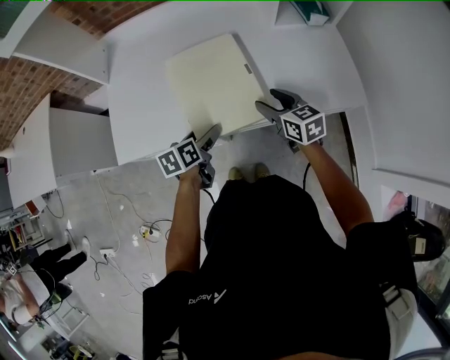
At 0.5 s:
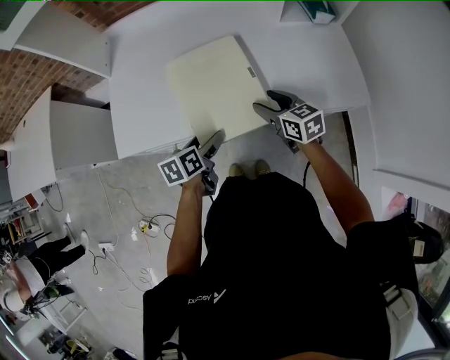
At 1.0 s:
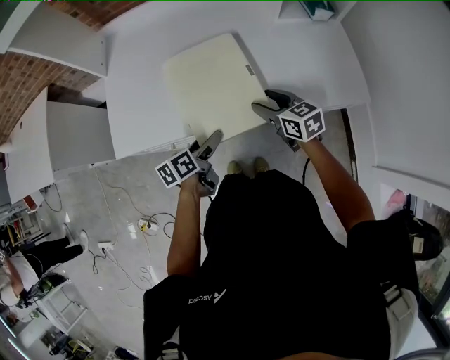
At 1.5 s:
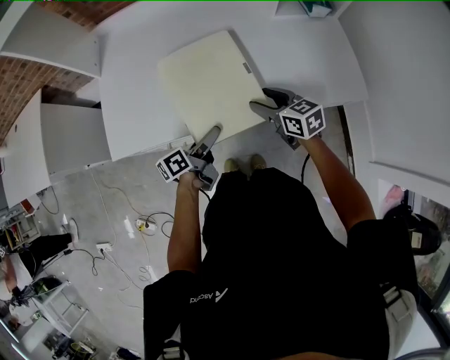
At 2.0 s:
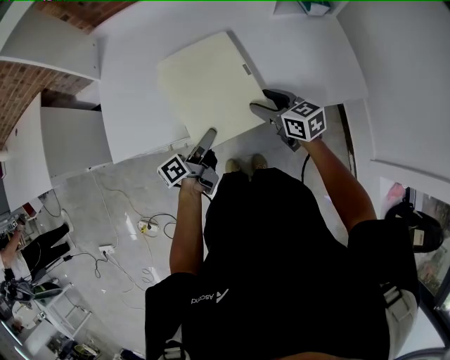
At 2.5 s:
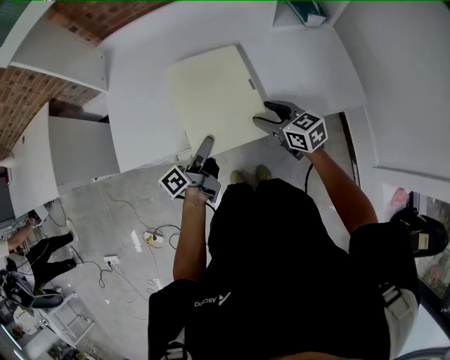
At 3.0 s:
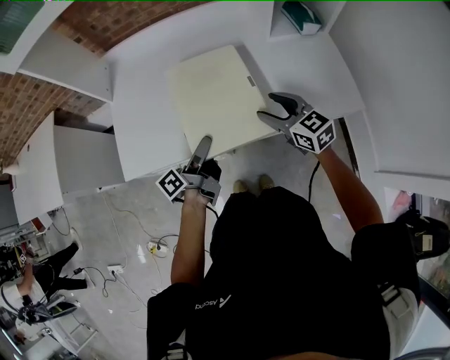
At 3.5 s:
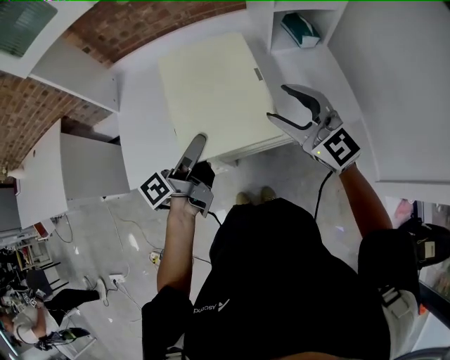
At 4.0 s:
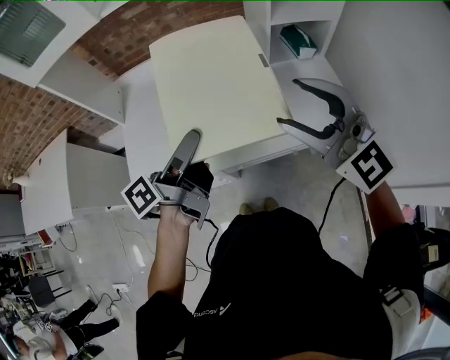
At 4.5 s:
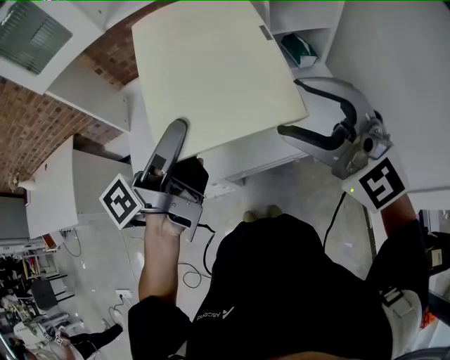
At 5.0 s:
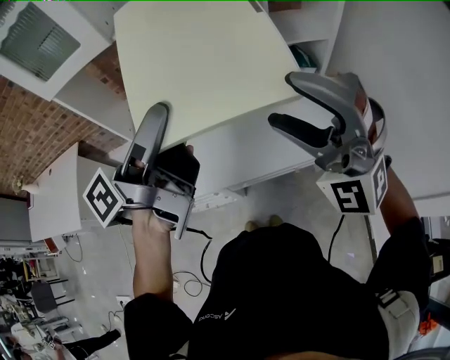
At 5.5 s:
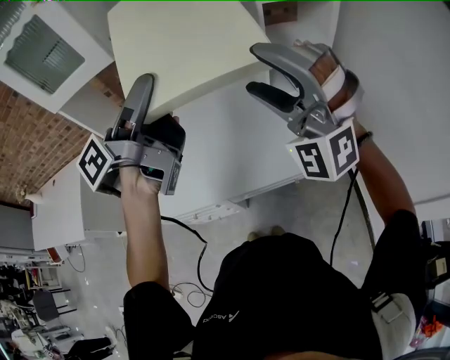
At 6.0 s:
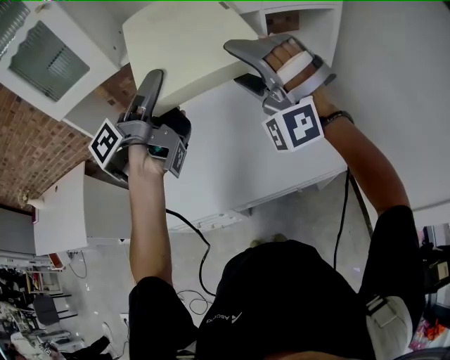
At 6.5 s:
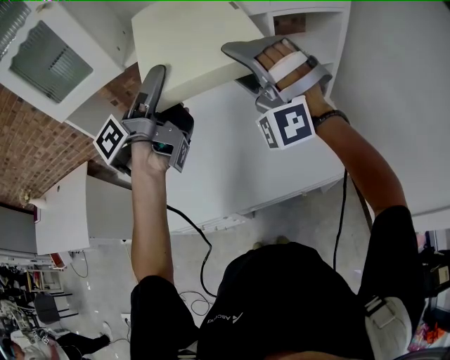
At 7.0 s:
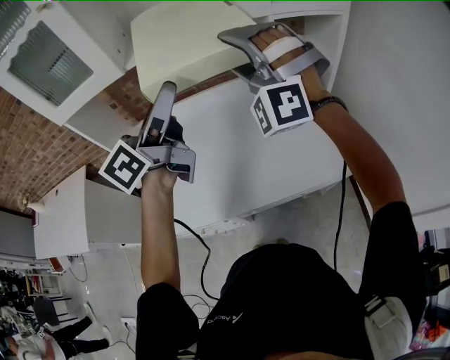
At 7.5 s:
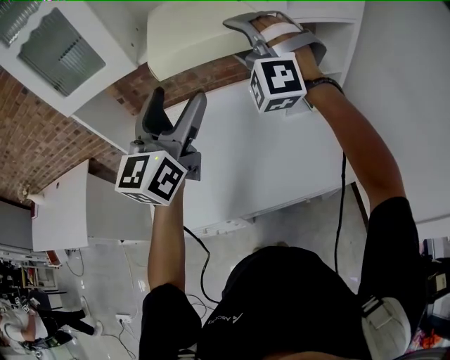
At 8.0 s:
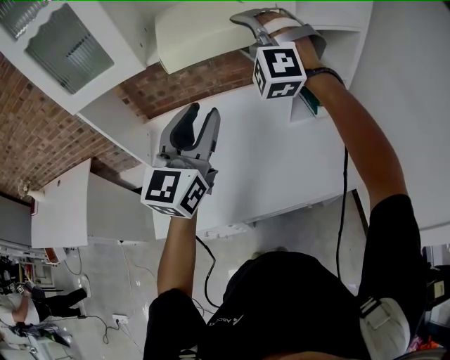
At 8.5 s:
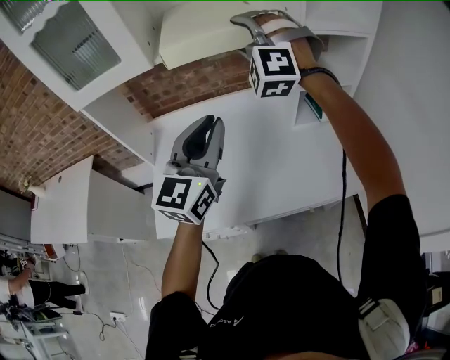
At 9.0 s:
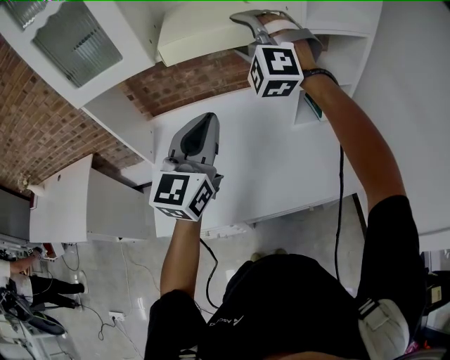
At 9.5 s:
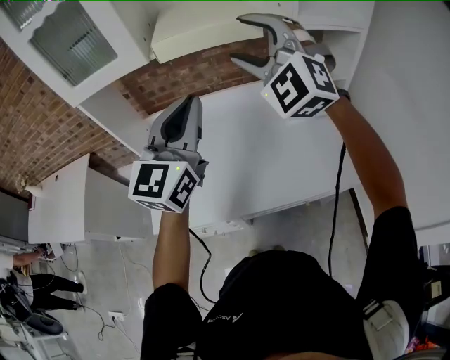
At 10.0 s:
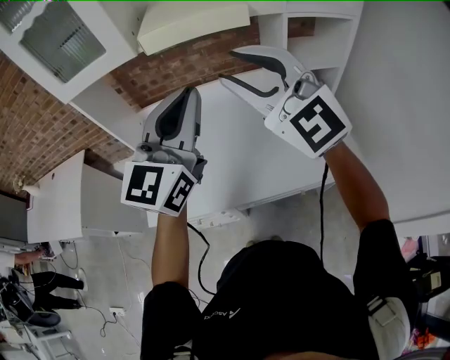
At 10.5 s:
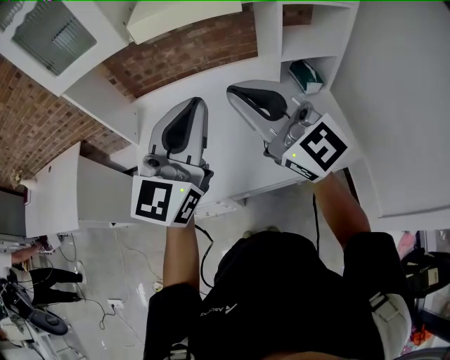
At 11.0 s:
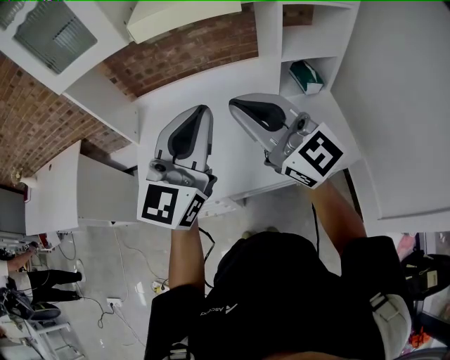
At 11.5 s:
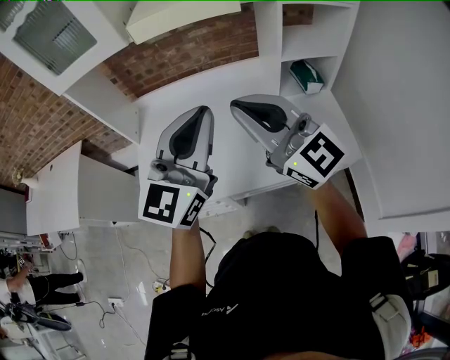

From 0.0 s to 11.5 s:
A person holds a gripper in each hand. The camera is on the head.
From 0.0 s to 2.0 s: The left gripper tips its fingers upward by approximately 30 degrees.
From 2.0 s to 4.0 s: Both grippers move upward, about 35 cm. The right gripper rotates around the line of its fingers by some 50 degrees, counterclockwise from behind.
From 4.0 s to 6.0 s: The right gripper moves forward and upward, about 20 cm, and twists about 70 degrees counterclockwise, seen from behind, while the left gripper heads upward and forward, covering approximately 25 cm.
From 6.0 s to 7.5 s: The right gripper moves forward, about 10 cm. The left gripper twists some 80 degrees clockwise, seen from behind.
From 7.5 s to 9.5 s: The right gripper shifts about 5 cm backward, and rotates some 30 degrees. Meanwhile the left gripper closes up.
From 9.5 s to 11.5 s: The left gripper travels backward by some 10 cm. The right gripper goes roughly 20 cm backward and downward, twists about 60 degrees clockwise, seen from behind, and closes its fingers.

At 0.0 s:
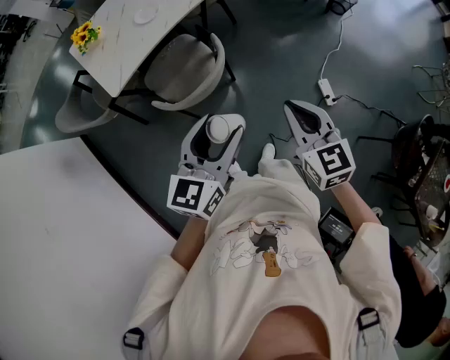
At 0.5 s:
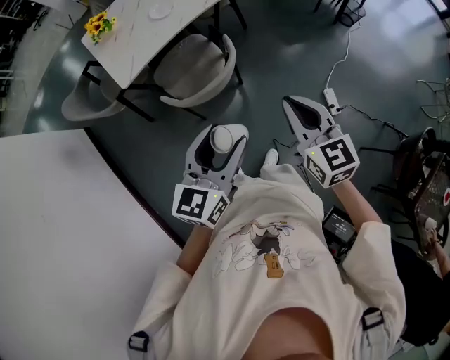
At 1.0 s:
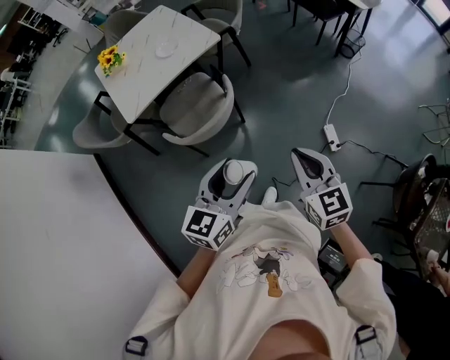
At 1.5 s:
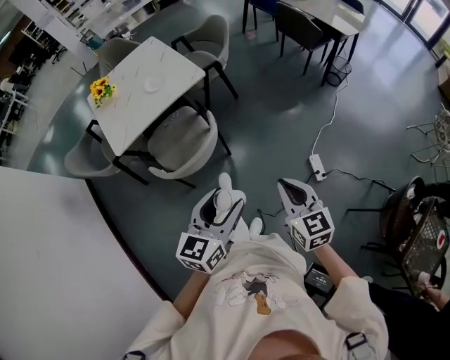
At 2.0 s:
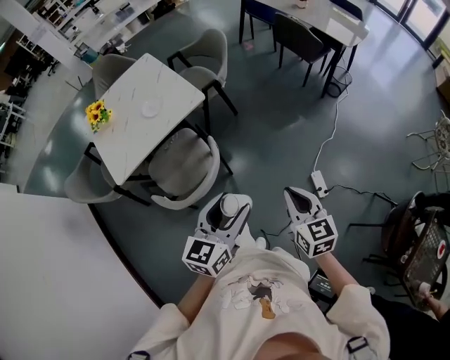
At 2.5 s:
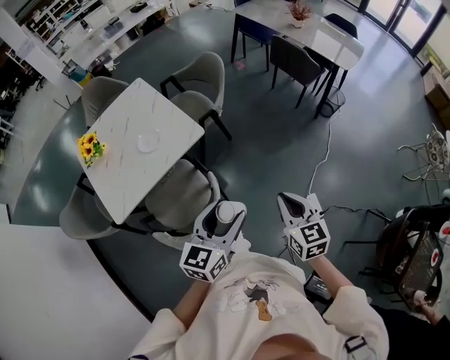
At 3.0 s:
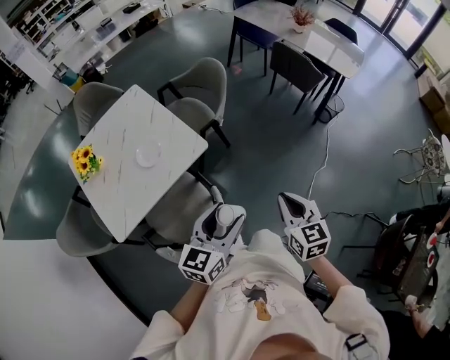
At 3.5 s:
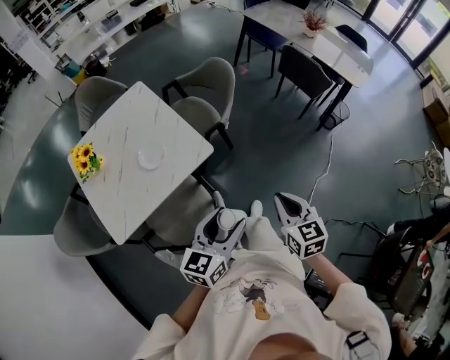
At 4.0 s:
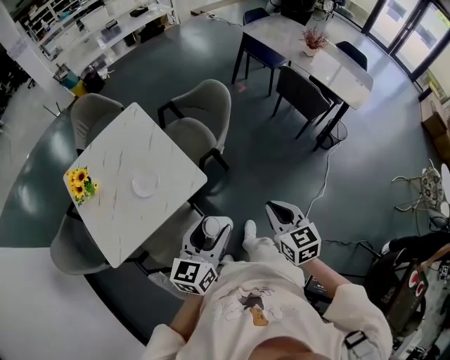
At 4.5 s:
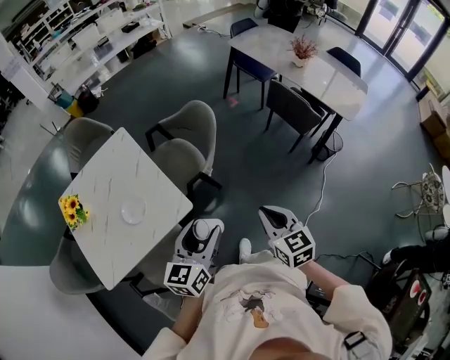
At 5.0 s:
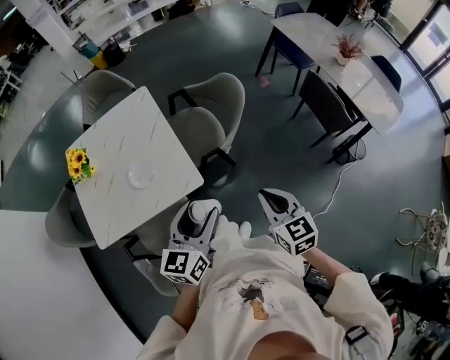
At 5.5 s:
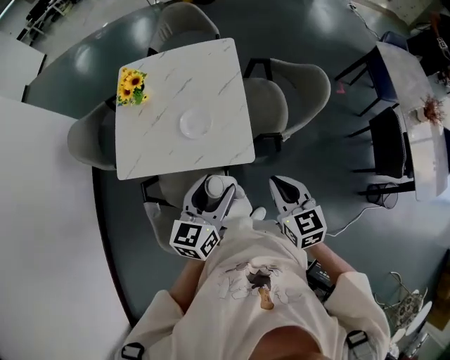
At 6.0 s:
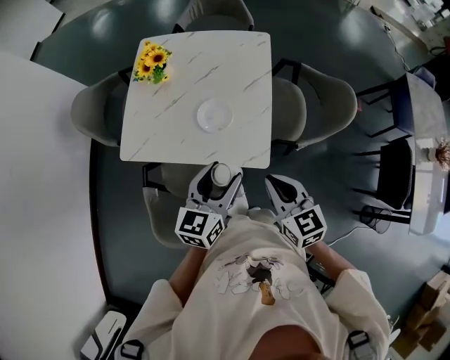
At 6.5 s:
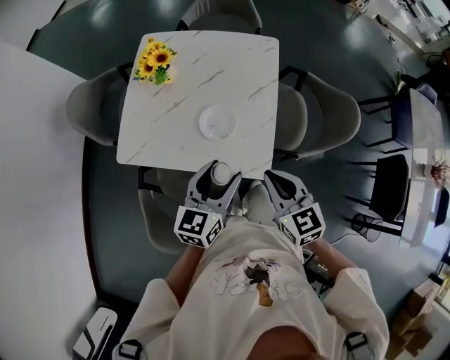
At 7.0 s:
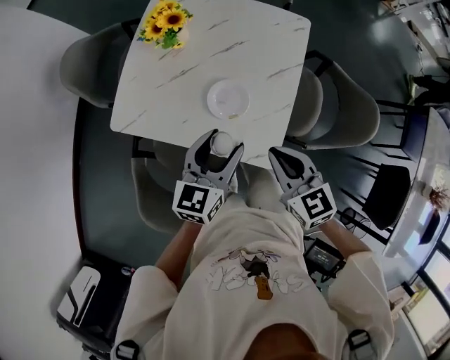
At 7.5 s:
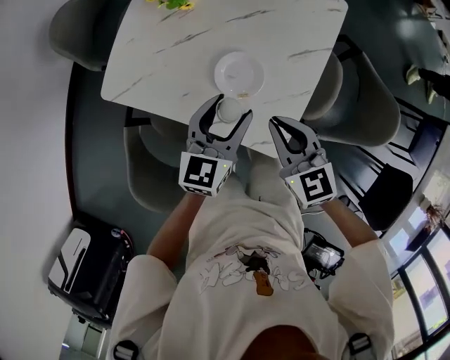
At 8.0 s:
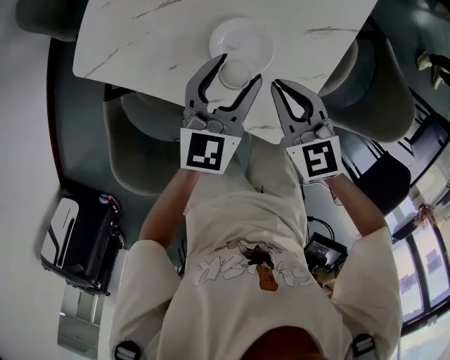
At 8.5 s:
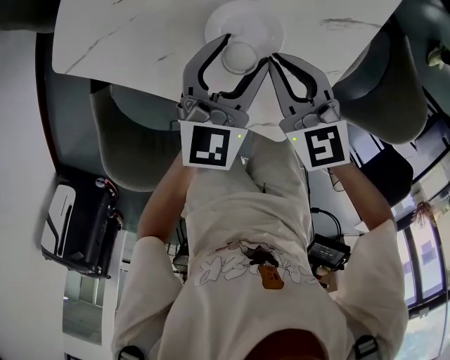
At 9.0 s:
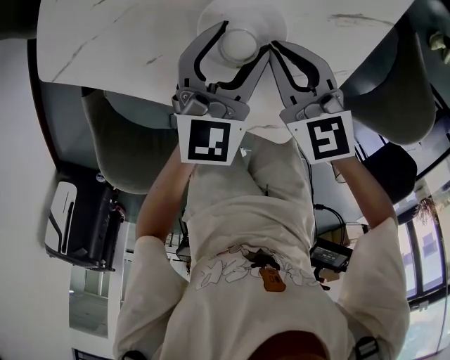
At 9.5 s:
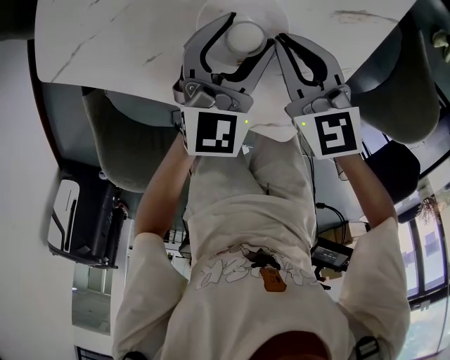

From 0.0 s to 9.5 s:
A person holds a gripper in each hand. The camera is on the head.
From 0.0 s to 2.0 s: The right gripper heads forward, to the right and downward, covering about 15 cm. Meanwhile the left gripper shifts approximately 15 cm forward and to the right.
From 2.0 s to 4.0 s: The left gripper moves forward and to the left, some 35 cm; the right gripper goes roughly 35 cm forward.
From 4.0 s to 5.5 s: The left gripper moves approximately 10 cm, and swivels about 40 degrees. Meanwhile the right gripper ends up about 20 cm from where it was, and swivels about 40 degrees.
From 5.5 s to 7.5 s: The right gripper moves roughly 30 cm, and turns by roughly 40 degrees. Meanwhile the left gripper moves some 25 cm, and turns by some 20 degrees.
From 7.5 s to 9.5 s: The two grippers go approximately 15 cm downward and forward.

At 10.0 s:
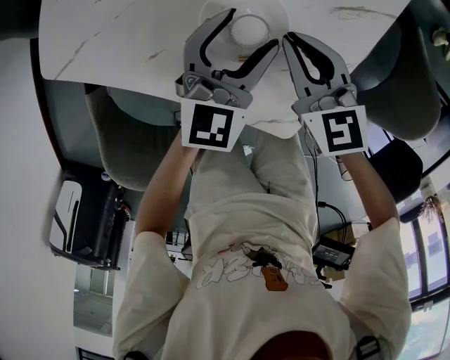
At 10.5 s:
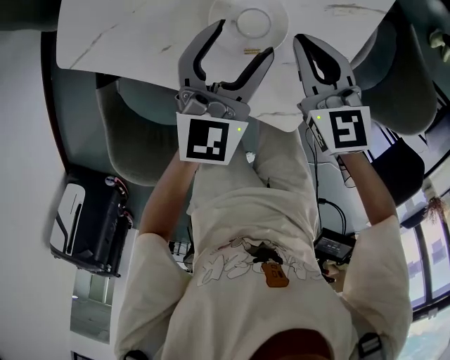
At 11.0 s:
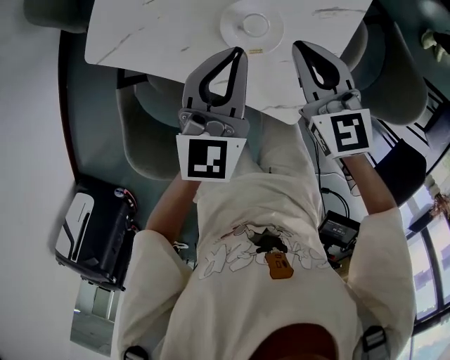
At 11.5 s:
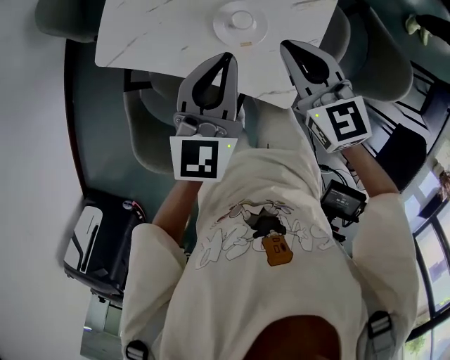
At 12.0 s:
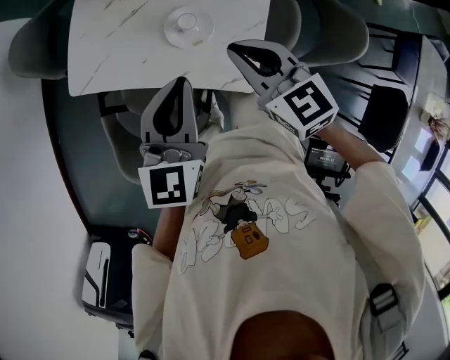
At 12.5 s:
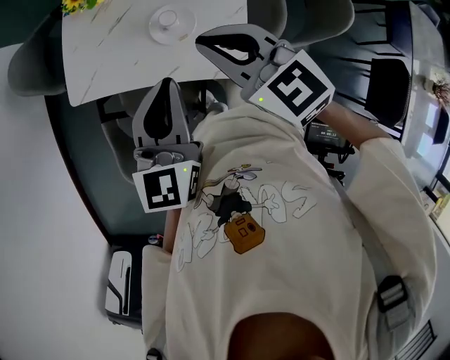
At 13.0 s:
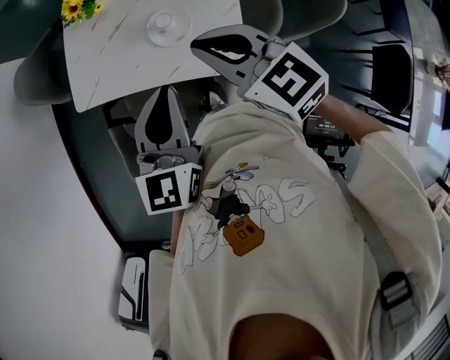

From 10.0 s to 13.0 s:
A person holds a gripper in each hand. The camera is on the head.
From 10.0 s to 11.5 s: The grippers both shift upward by roughly 20 cm. The left gripper closes its fingers.
From 11.5 s to 13.0 s: The right gripper goes roughly 15 cm upward and backward. Meanwhile the left gripper is displaced backward and upward by some 15 cm.

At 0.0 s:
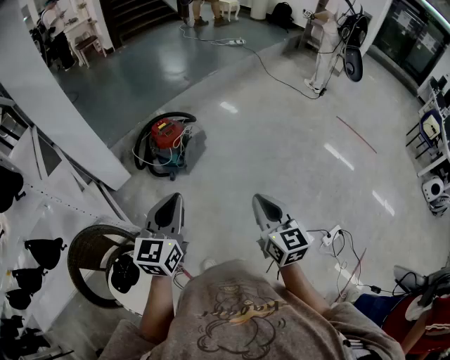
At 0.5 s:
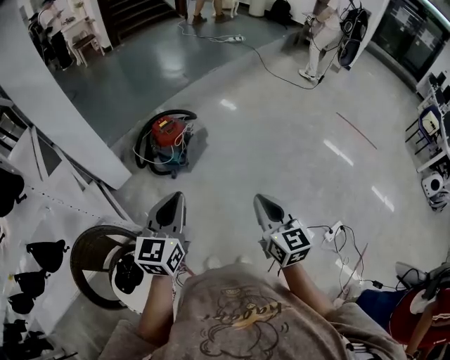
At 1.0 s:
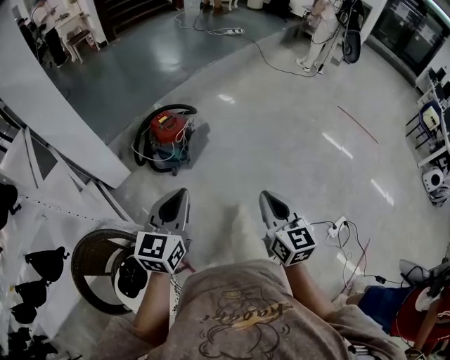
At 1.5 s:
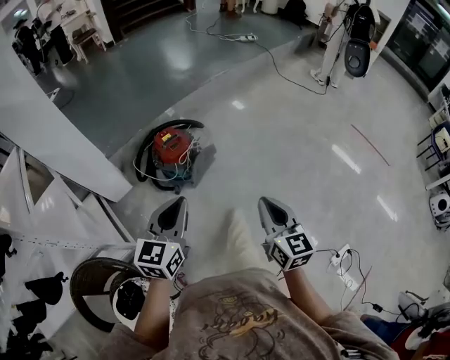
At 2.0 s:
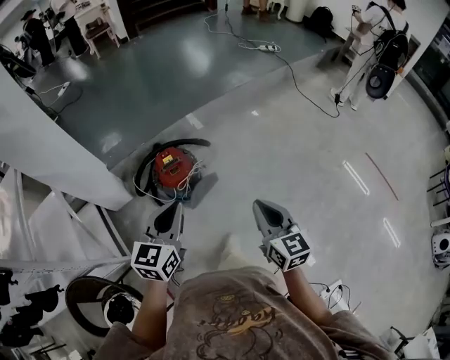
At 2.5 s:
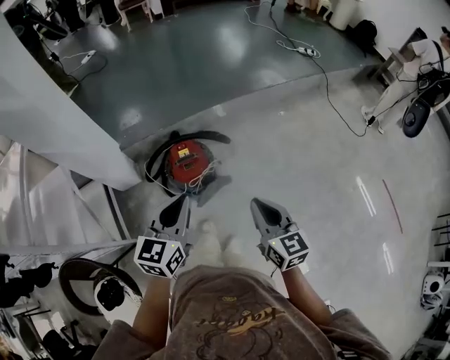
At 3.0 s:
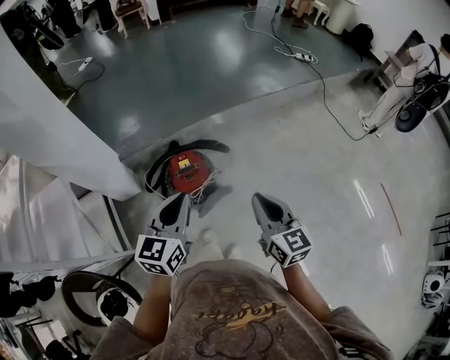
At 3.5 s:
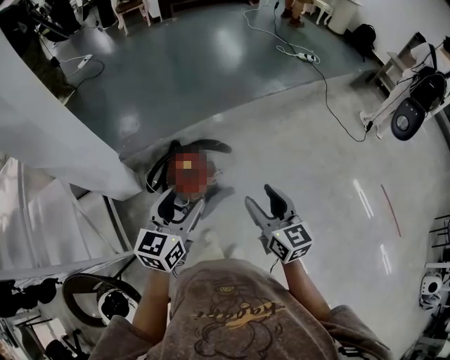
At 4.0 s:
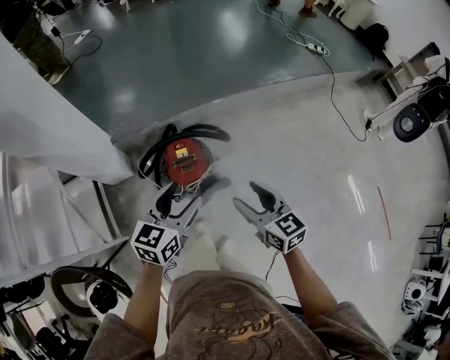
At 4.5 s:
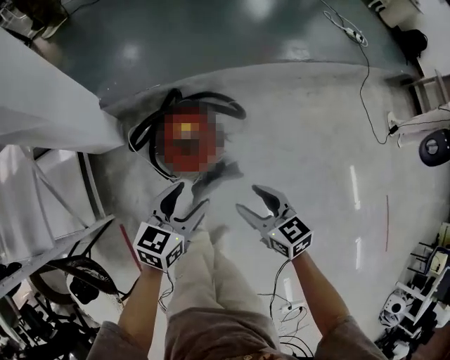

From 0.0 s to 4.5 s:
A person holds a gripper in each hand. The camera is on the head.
From 0.0 s to 2.0 s: The two grippers go roughly 35 cm forward.
From 2.0 s to 4.5 s: The left gripper moves downward and forward, about 30 cm, swivels roughly 20 degrees, and opens up; the right gripper shifts approximately 35 cm forward, downward and to the left, changes its angle by about 40 degrees, and opens its fingers.
